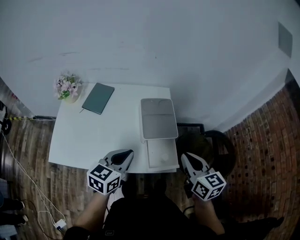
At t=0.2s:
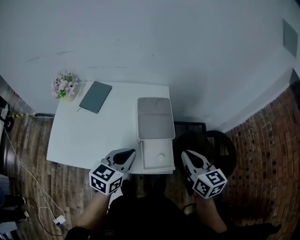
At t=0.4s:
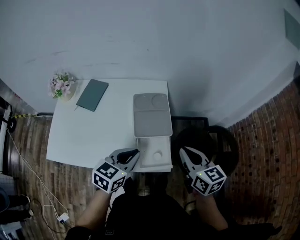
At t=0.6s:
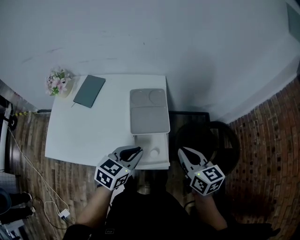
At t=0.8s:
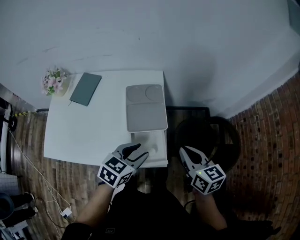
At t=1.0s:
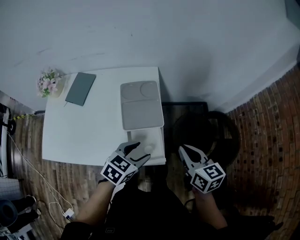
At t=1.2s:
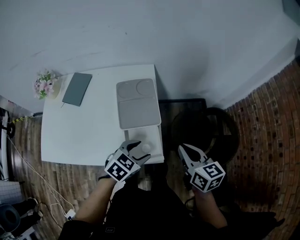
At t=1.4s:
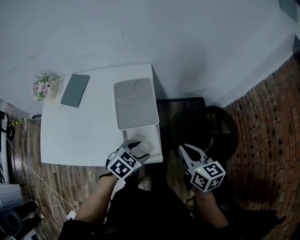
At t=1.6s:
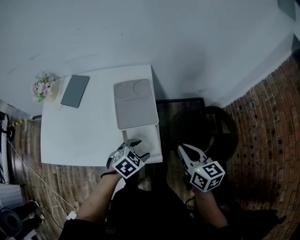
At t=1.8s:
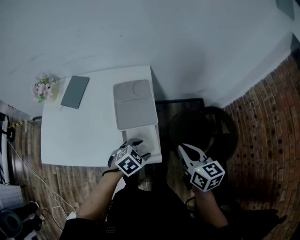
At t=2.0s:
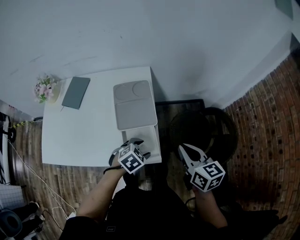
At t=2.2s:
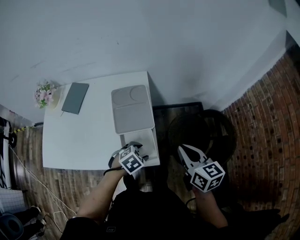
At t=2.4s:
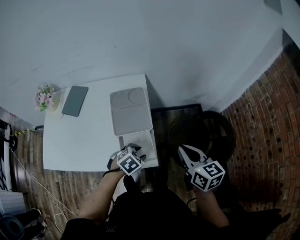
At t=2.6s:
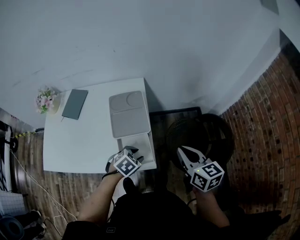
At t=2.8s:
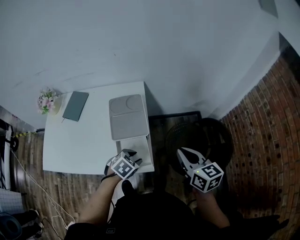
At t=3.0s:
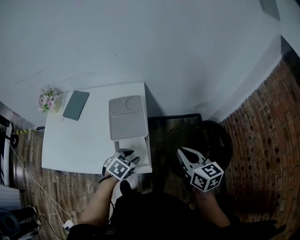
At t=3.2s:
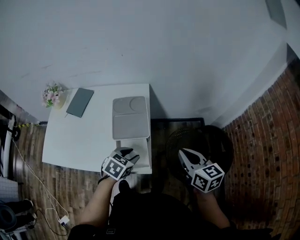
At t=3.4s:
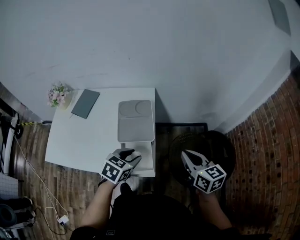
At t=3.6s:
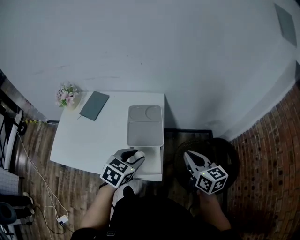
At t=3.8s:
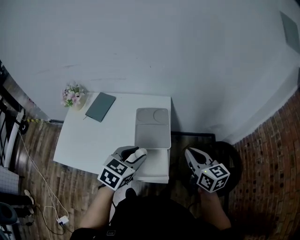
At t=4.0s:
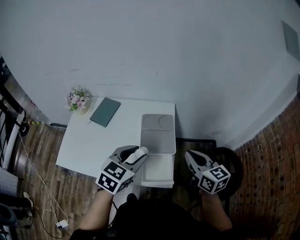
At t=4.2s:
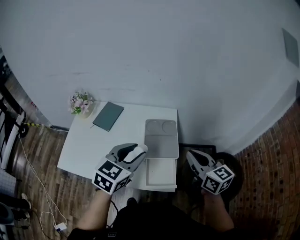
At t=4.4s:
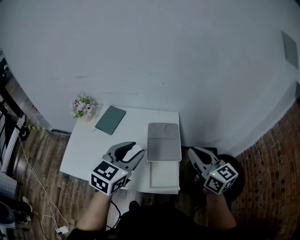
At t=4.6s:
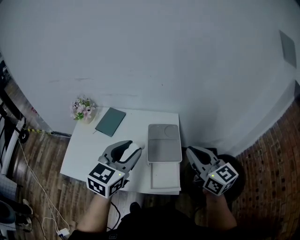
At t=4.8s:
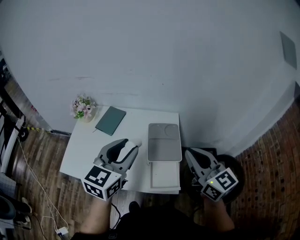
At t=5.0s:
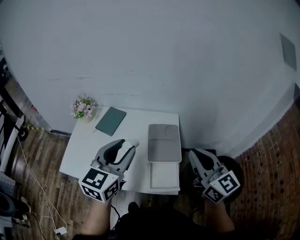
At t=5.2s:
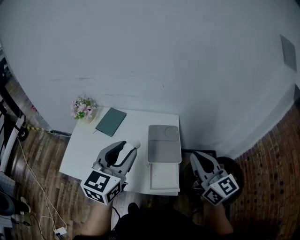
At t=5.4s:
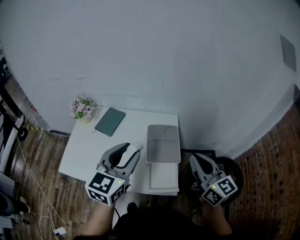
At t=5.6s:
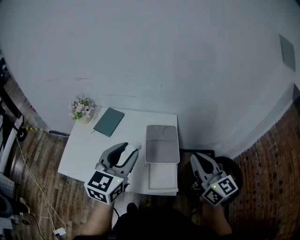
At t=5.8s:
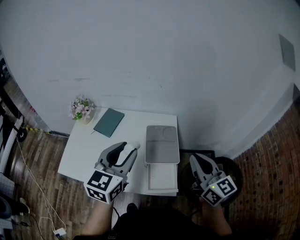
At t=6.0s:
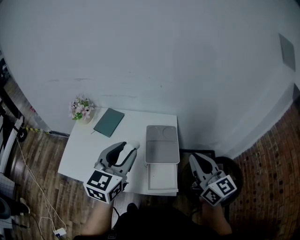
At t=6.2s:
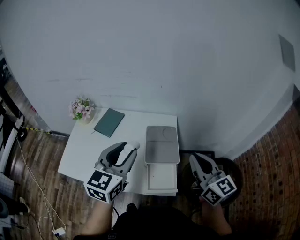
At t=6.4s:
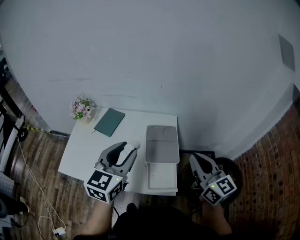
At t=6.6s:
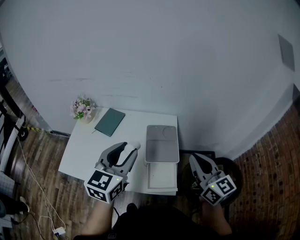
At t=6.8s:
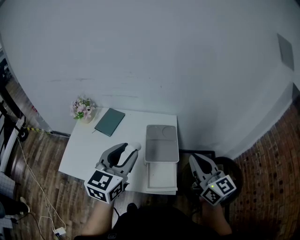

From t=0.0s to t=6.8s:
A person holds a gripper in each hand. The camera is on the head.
From t=0.0s to t=1.4s: The right gripper goes roughly 15 cm to the right and downward. The left gripper moves to the right and downward, approximately 25 cm, turns by roughly 40 degrees, and opens.
From t=1.4s to t=2.8s: The right gripper moves approximately 5 cm.
From t=2.8s to t=4.0s: The right gripper shifts approximately 10 cm to the left and upward. The left gripper goes some 25 cm upward and to the left, and rotates approximately 40 degrees.
From t=4.0s to t=5.4s: The two grippers go some 10 cm upward and to the left. The left gripper changes its angle by approximately 20 degrees.
From t=5.4s to t=6.8s: There are only small adjustments of the grippers.

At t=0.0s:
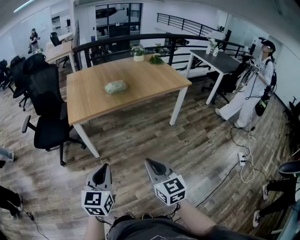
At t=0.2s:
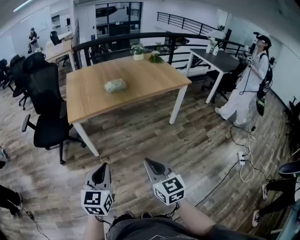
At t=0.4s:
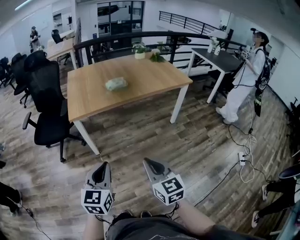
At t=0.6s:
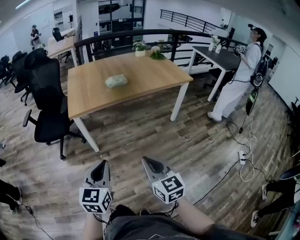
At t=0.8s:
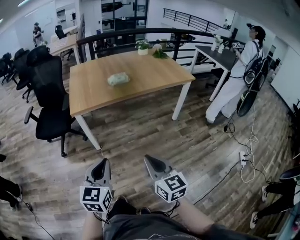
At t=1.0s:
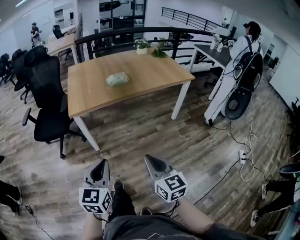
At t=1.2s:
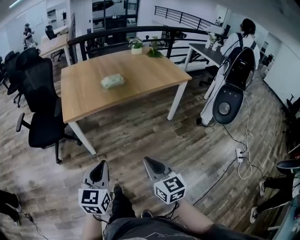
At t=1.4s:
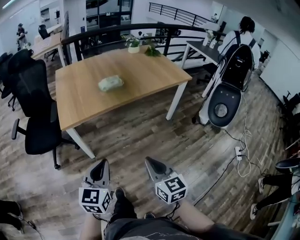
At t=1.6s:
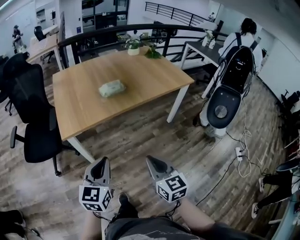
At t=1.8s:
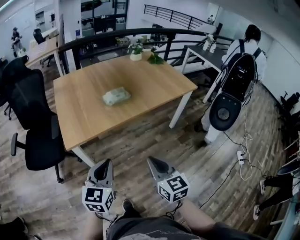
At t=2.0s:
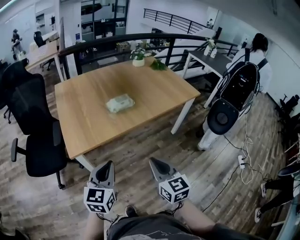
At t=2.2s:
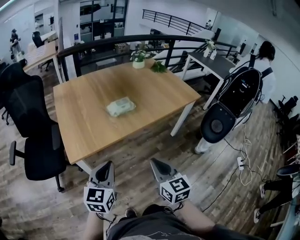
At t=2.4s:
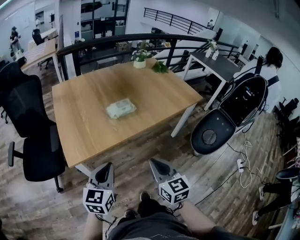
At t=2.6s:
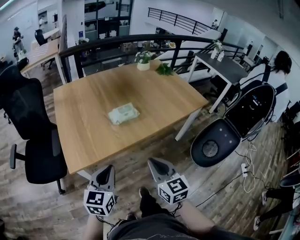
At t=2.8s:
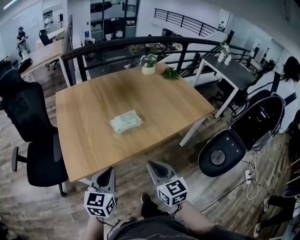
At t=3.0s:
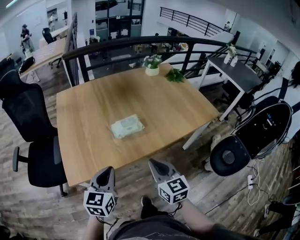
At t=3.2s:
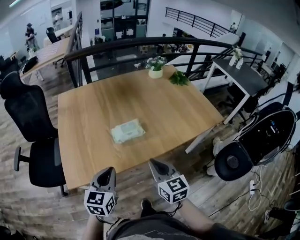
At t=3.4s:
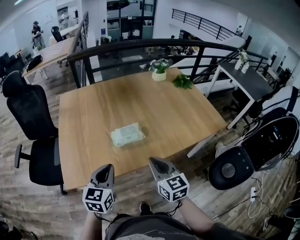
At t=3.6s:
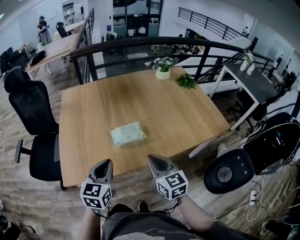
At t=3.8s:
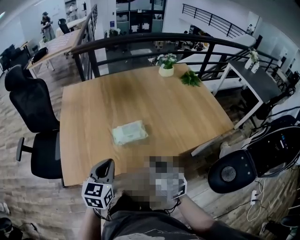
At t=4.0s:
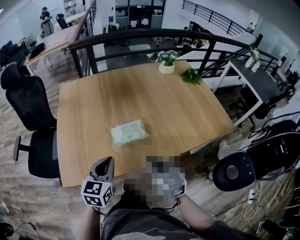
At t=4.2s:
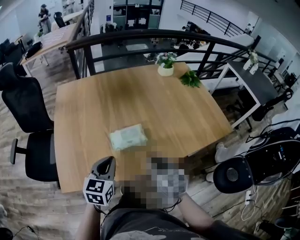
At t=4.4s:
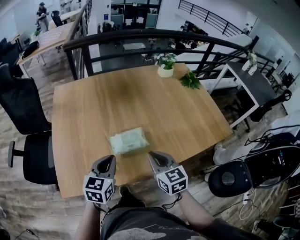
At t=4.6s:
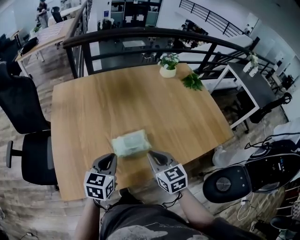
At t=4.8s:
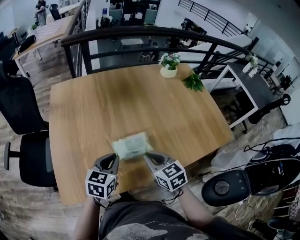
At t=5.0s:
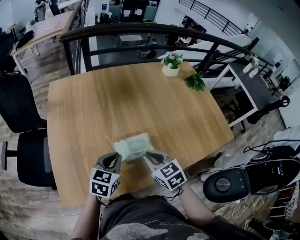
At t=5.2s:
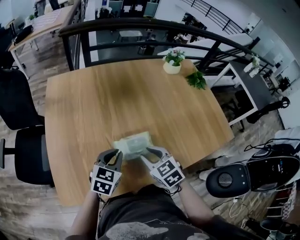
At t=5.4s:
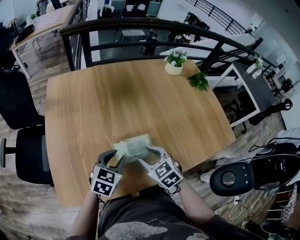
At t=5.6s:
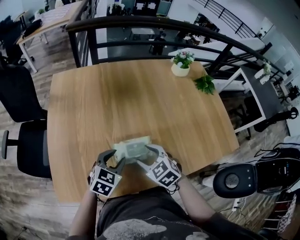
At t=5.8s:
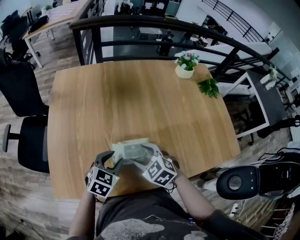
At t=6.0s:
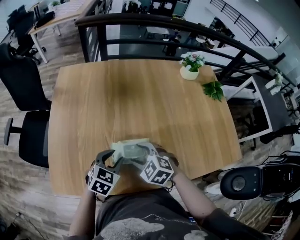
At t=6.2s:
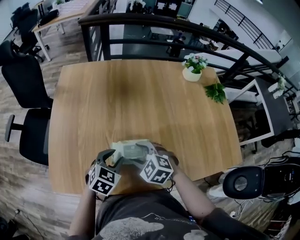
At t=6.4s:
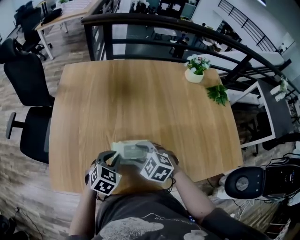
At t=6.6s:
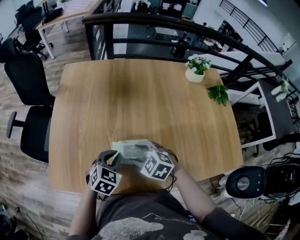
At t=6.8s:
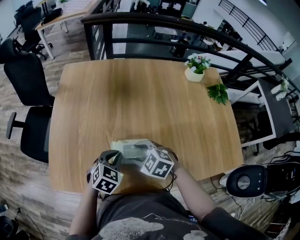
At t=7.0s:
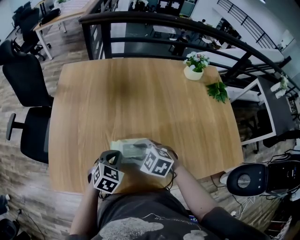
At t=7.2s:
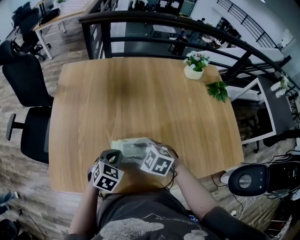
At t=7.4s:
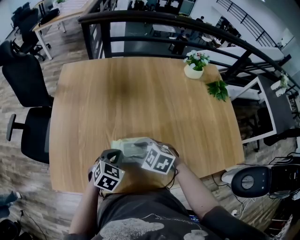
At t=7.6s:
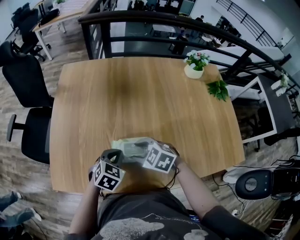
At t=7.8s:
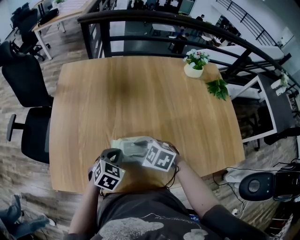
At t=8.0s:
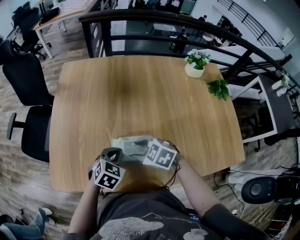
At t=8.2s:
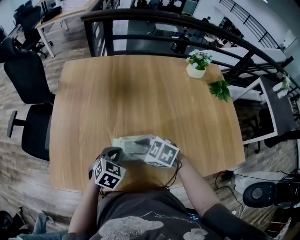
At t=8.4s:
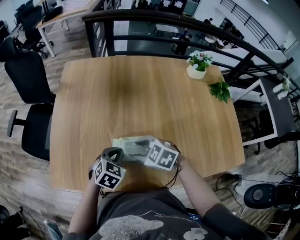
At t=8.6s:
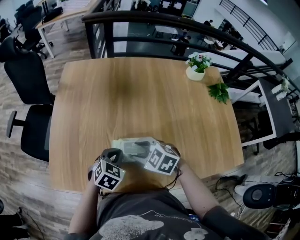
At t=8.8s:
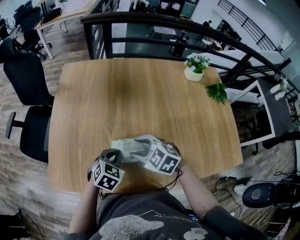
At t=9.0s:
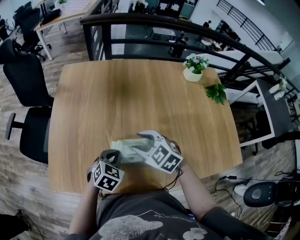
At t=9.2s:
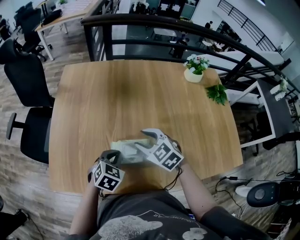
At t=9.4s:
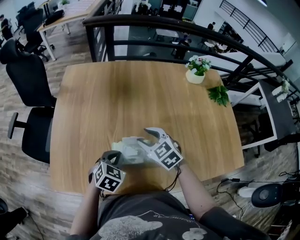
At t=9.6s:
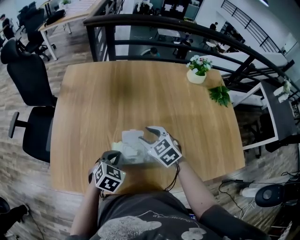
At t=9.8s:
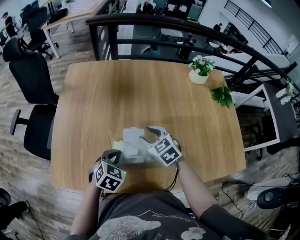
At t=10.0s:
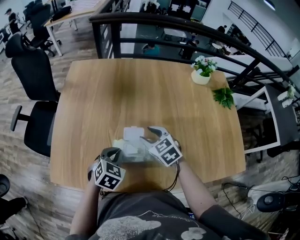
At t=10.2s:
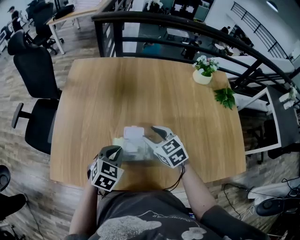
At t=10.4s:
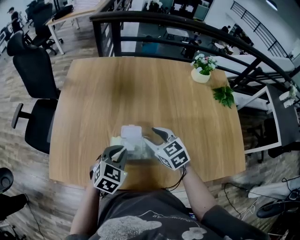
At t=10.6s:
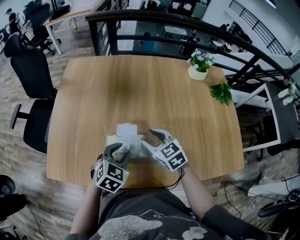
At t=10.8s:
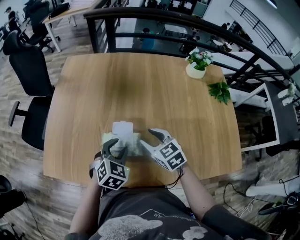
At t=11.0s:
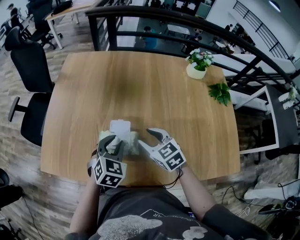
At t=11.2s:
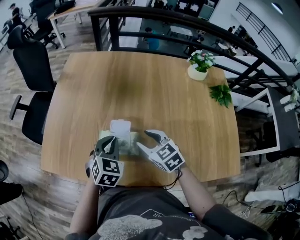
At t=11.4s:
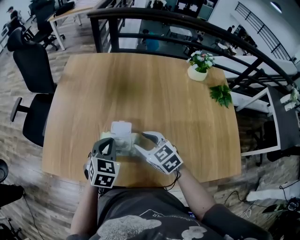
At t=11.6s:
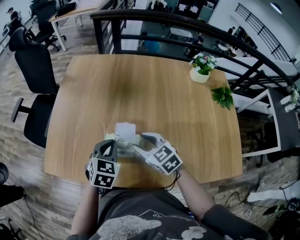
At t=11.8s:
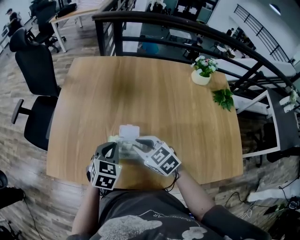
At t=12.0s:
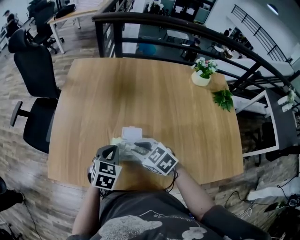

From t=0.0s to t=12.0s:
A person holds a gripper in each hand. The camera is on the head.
From t=0.0s to t=1.6s: The two grippers go some 20 cm forward.
From t=1.6s to t=3.0s: Both grippers travel together forward, approximately 30 cm.
From t=3.0s to t=4.4s: The two grippers go some 20 cm forward.
From t=4.4s to t=6.0s: The left gripper moves downward and forward, about 15 cm, rotates some 20 degrees, and opens up. Meanwhile the right gripper heads forward, downward and to the left, covering roughly 15 cm, swivels approximately 60 degrees, and opens up.
From t=6.0s to t=7.6s: The left gripper closes its fingers.
From t=7.6s to t=9.0s: The right gripper is displaced upward by roughly 5 cm.
From t=9.0s to t=10.4s: The right gripper is displaced to the right by roughly 5 cm. The left gripper changes place by roughly 5 cm.
From t=10.4s to t=12.0s: The right gripper is displaced to the left by approximately 10 cm, and closes its fingers; the left gripper opens and closes again.

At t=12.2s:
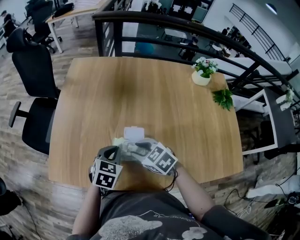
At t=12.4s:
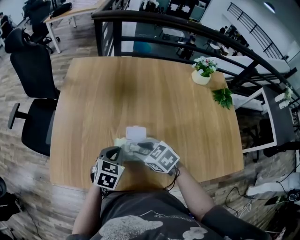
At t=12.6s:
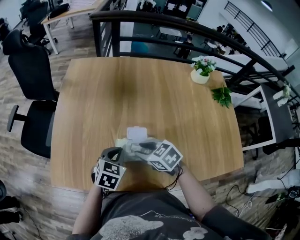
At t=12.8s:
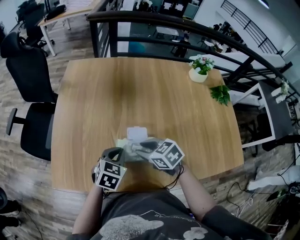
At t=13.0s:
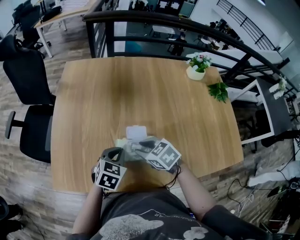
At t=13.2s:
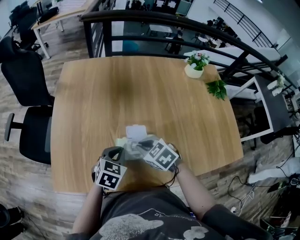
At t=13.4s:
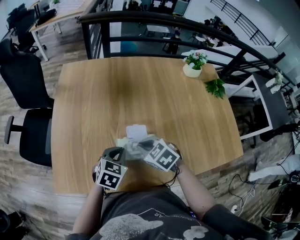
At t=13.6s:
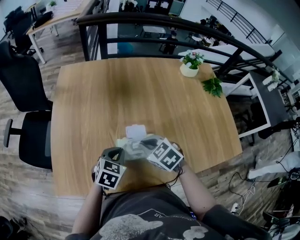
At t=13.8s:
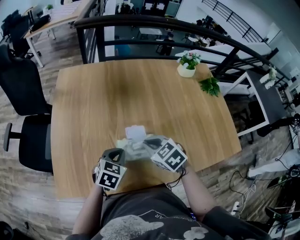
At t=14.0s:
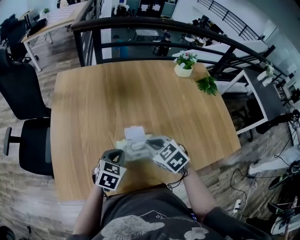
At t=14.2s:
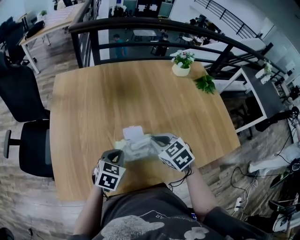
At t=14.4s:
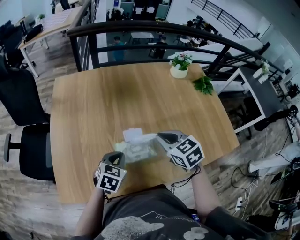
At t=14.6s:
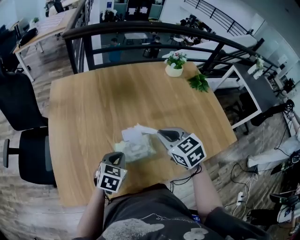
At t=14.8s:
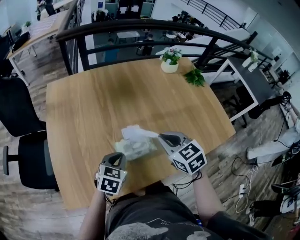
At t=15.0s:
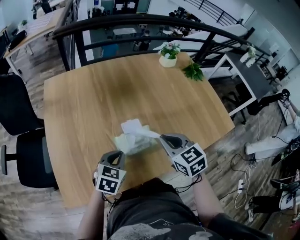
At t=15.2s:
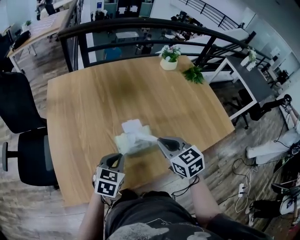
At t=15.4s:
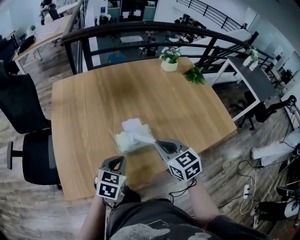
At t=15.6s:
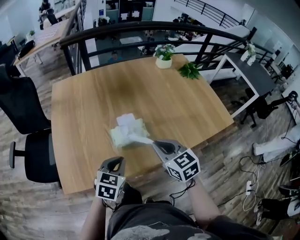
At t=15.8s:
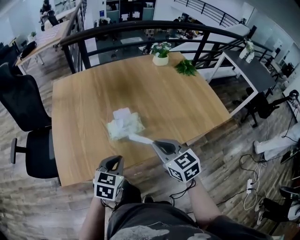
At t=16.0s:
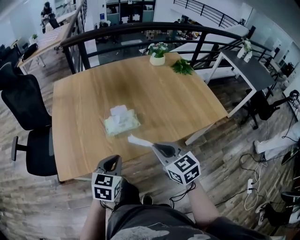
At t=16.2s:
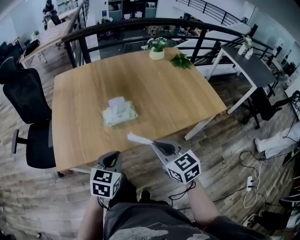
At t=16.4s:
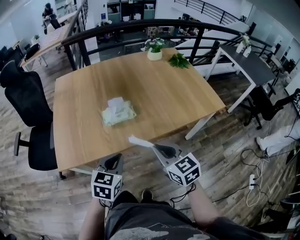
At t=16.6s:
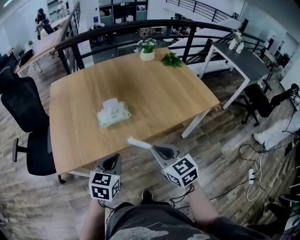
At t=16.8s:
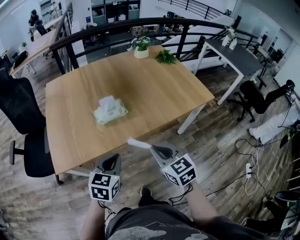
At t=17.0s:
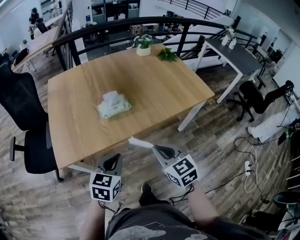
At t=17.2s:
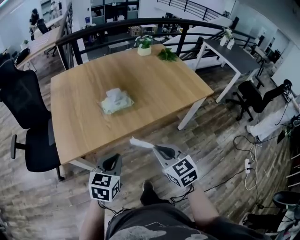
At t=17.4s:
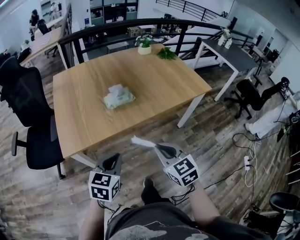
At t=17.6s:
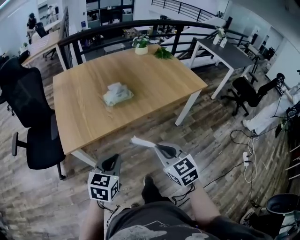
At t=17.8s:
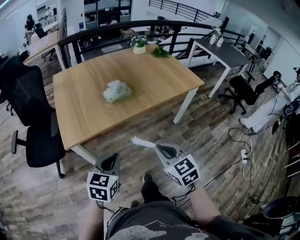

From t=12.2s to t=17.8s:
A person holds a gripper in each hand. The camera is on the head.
From t=12.2s to t=13.6s: The right gripper closes up.
From t=13.6s to t=15.0s: The right gripper moves upward and to the right, some 10 cm, and turns by about 30 degrees.
From t=15.0s to t=16.4s: Both grippers travel together backward, roughly 25 cm.
From t=16.4s to t=17.8s: Both grippers move backward, about 20 cm.
